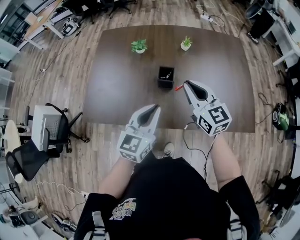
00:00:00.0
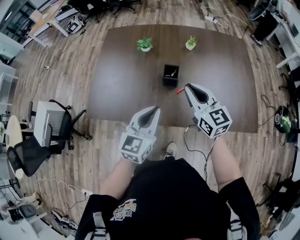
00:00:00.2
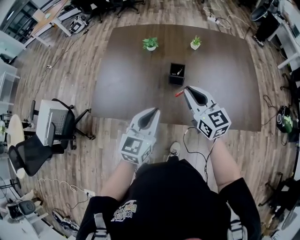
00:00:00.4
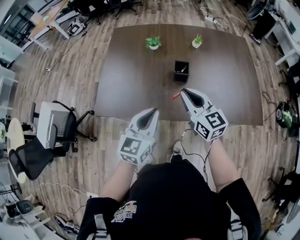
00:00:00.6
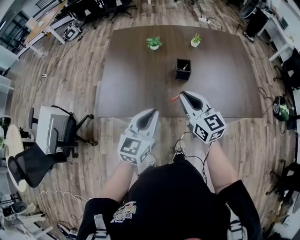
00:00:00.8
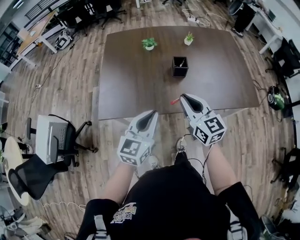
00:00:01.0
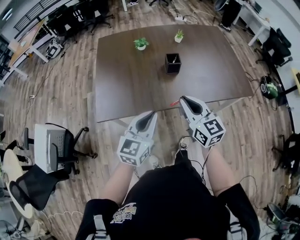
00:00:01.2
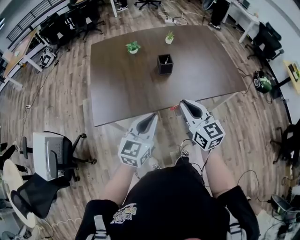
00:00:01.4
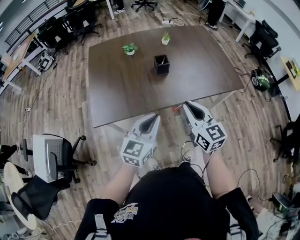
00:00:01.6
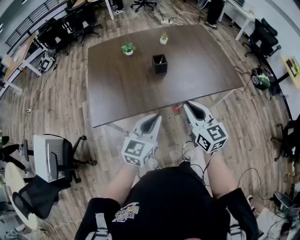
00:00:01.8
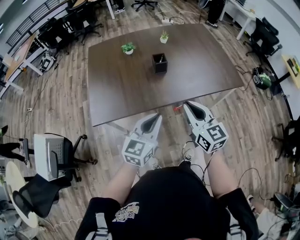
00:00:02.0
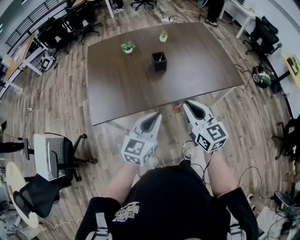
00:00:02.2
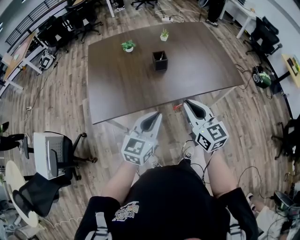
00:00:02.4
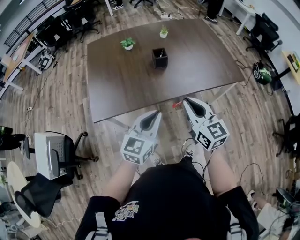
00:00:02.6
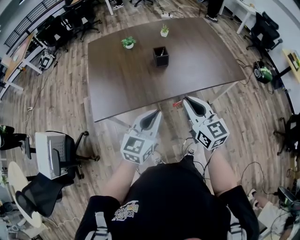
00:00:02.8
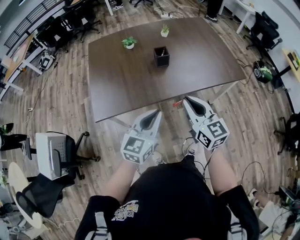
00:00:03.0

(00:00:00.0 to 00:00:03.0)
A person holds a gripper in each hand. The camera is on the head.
00:00:00.0 - 00:00:01.6: The two grippers go some 25 cm backward and to the left. The right gripper turns by approximately 20 degrees.
00:00:01.6 - 00:00:03.0: The grippers stay close to where they were, moving slightly.

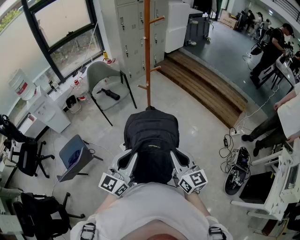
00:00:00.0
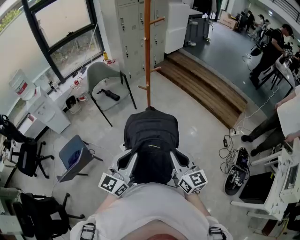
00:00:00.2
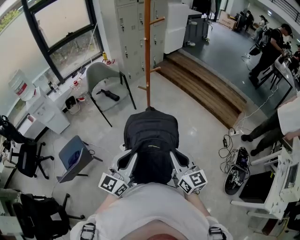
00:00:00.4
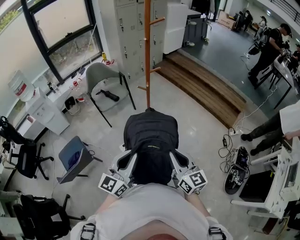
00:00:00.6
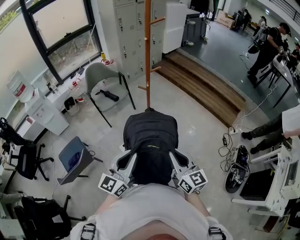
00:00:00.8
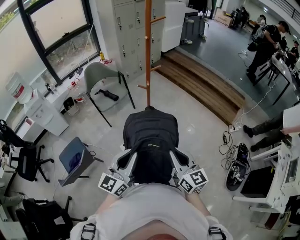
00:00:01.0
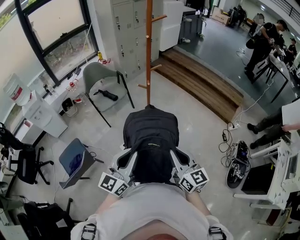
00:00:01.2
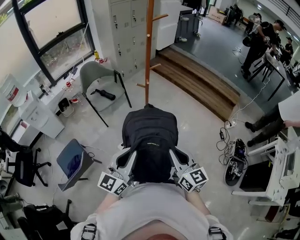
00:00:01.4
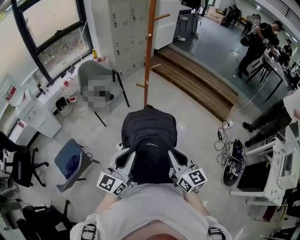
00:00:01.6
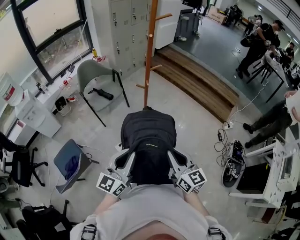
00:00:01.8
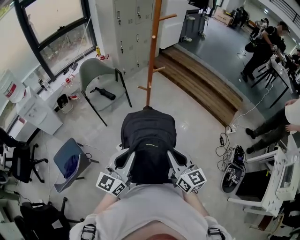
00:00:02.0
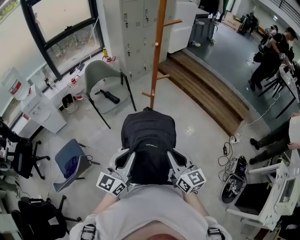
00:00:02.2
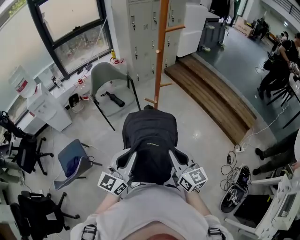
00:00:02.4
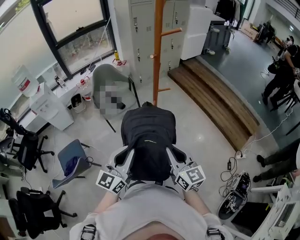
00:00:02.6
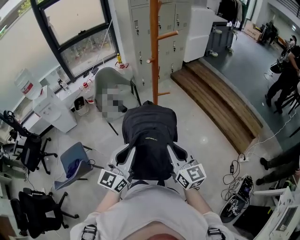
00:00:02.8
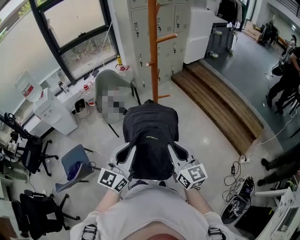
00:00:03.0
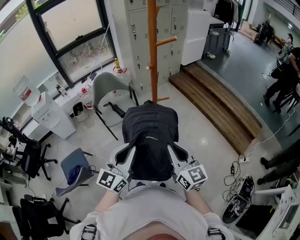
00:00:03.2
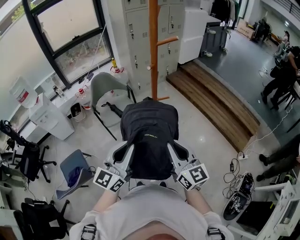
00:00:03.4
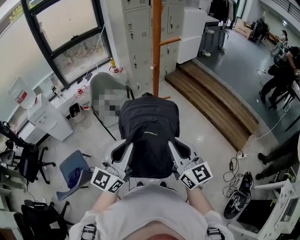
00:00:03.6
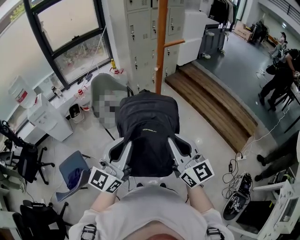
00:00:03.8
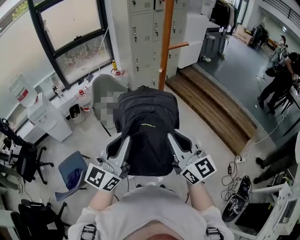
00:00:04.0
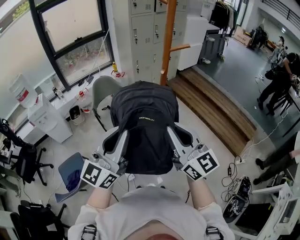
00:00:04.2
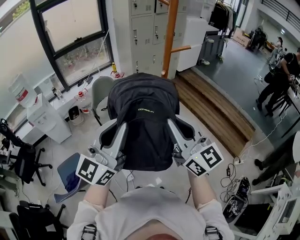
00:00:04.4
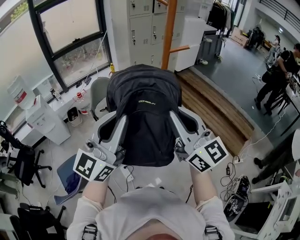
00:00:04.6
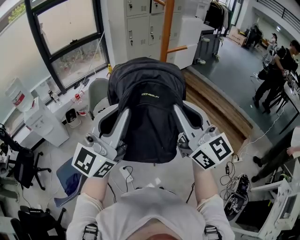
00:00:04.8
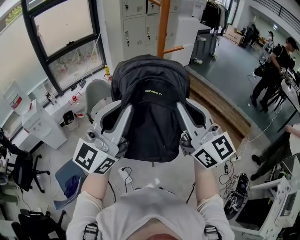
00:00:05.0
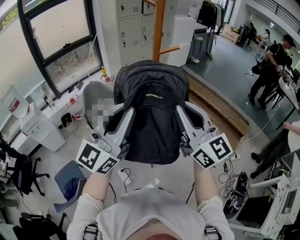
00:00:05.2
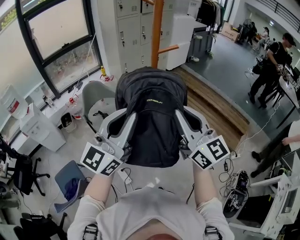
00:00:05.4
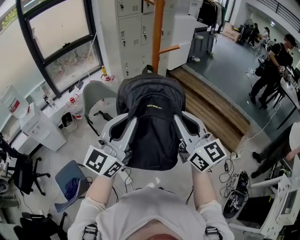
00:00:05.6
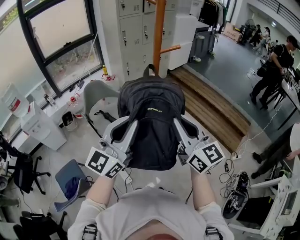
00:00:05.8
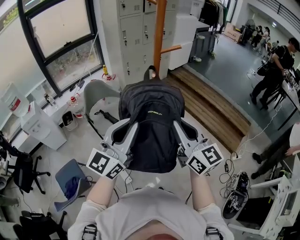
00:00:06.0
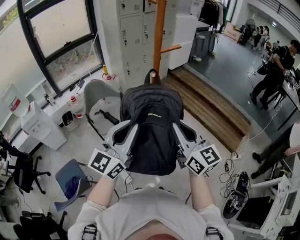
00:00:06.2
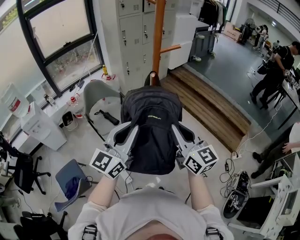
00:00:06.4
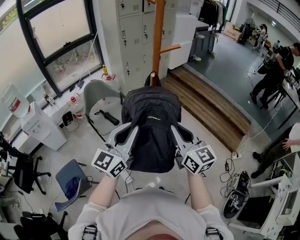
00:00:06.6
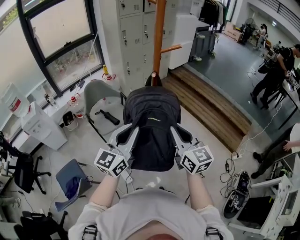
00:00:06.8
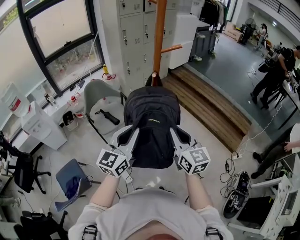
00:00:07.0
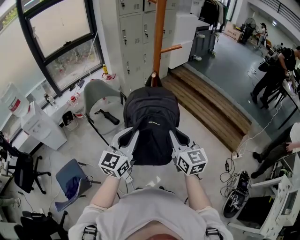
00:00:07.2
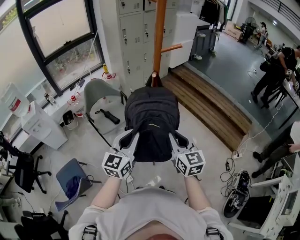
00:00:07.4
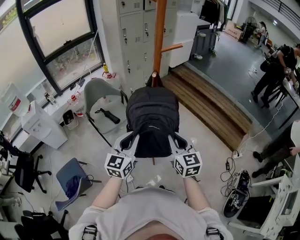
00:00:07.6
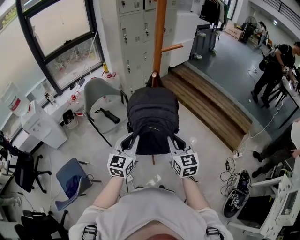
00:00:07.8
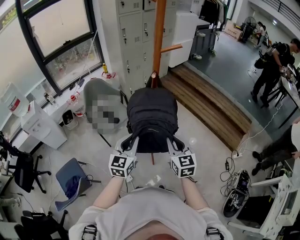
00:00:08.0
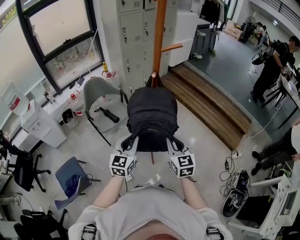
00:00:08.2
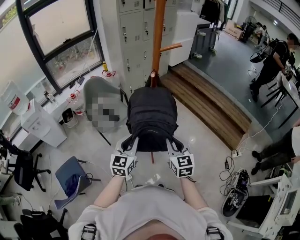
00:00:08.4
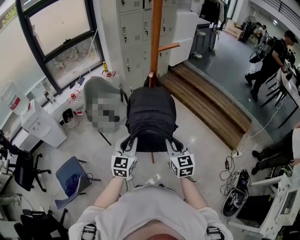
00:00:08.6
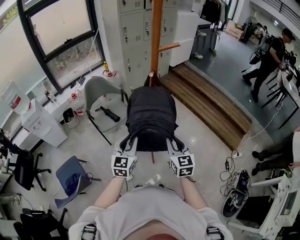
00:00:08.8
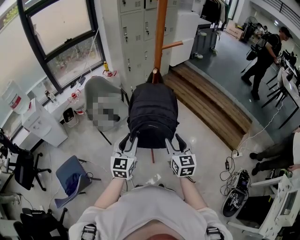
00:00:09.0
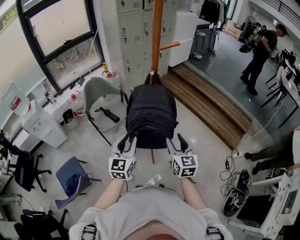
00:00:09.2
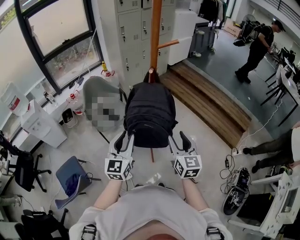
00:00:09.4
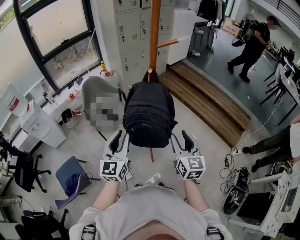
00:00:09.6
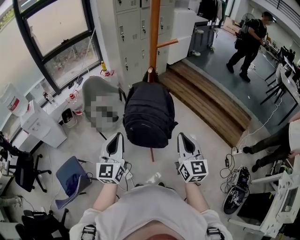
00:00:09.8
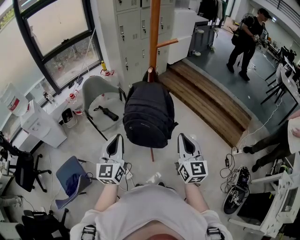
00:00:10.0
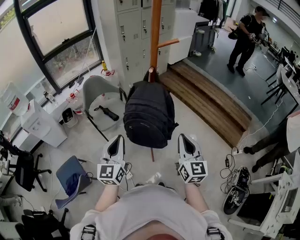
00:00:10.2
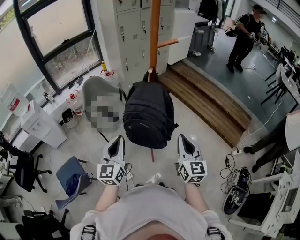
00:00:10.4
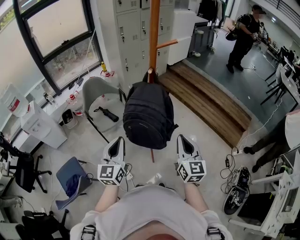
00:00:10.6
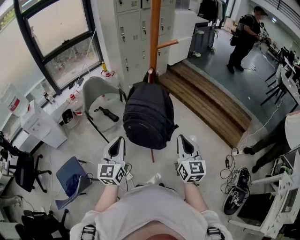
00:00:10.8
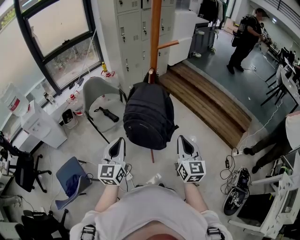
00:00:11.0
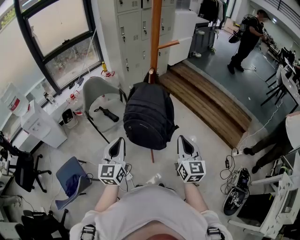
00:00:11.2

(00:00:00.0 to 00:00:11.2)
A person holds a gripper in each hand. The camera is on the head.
00:00:00.0 - 00:00:01.6: The grippers both shift to the left by approximately 5 cm.
00:00:01.6 - 00:00:03.2: Both grippers move forward, roughly 25 cm.
00:00:03.2 - 00:00:04.8: The two grippers go some 20 cm upward. The right gripper rotates some 20 degrees. Meanwhile the left gripper rotates roughly 20 degrees.
00:00:04.8 - 00:00:06.4: The two grippers go some 15 cm downward.
00:00:06.4 - 00:00:08.0: The two grippers go roughly 15 cm downward. The right gripper rotates about 20 degrees. The left gripper turns by some 20 degrees.
00:00:08.0 - 00:00:09.6: The left gripper travels upward by about 5 cm; the right gripper shifts by approximately 5 cm, and opens up.
00:00:09.6 - 00:00:11.2: The left gripper closes. The right gripper closes its fingers.

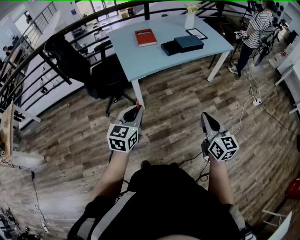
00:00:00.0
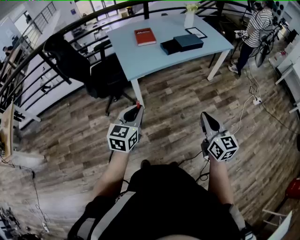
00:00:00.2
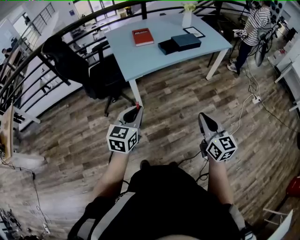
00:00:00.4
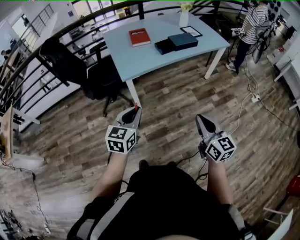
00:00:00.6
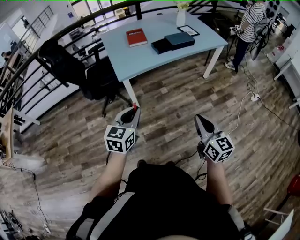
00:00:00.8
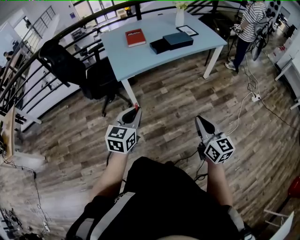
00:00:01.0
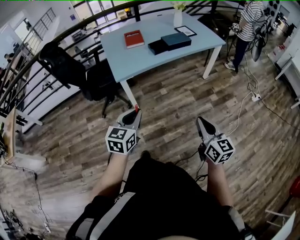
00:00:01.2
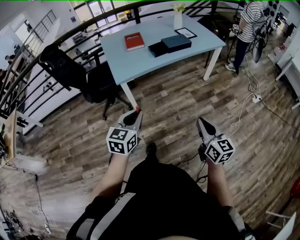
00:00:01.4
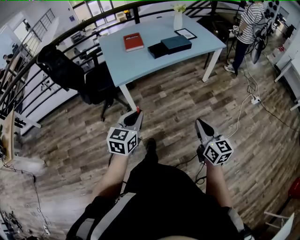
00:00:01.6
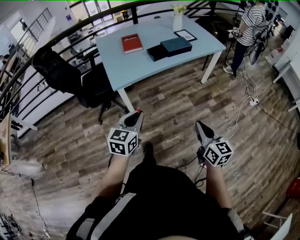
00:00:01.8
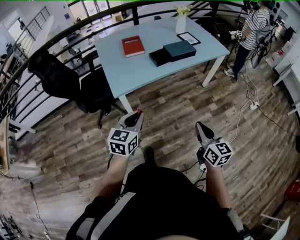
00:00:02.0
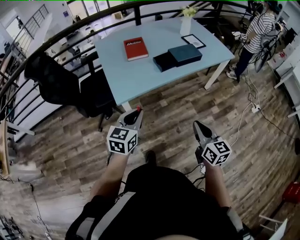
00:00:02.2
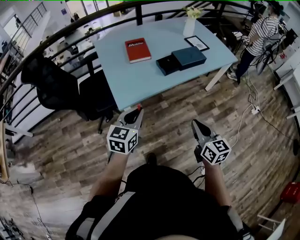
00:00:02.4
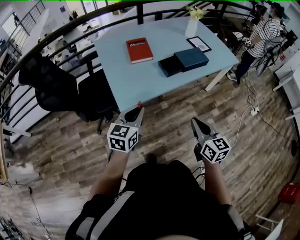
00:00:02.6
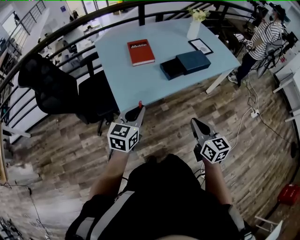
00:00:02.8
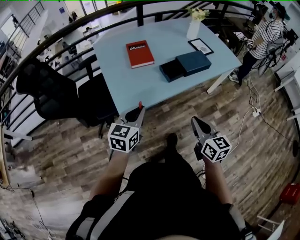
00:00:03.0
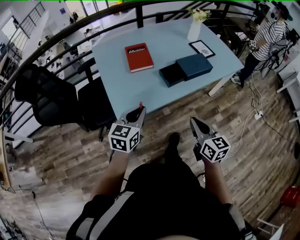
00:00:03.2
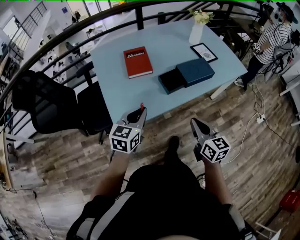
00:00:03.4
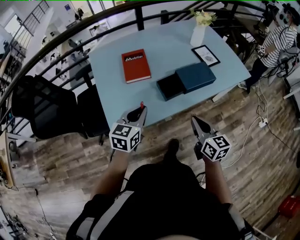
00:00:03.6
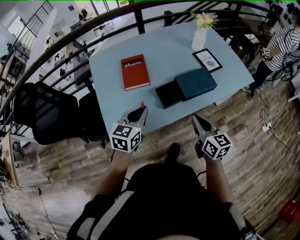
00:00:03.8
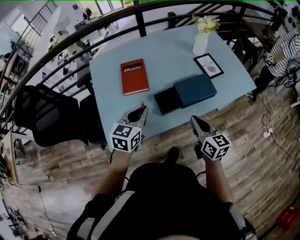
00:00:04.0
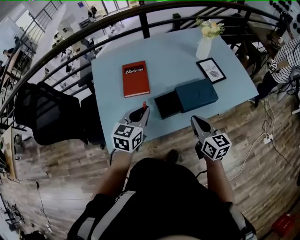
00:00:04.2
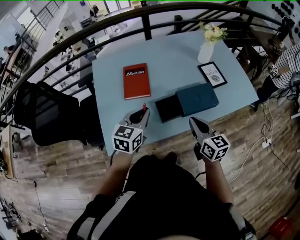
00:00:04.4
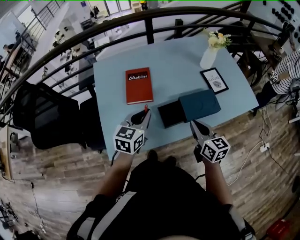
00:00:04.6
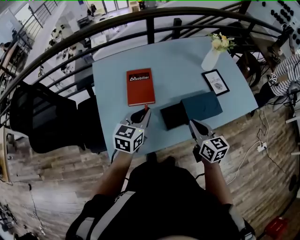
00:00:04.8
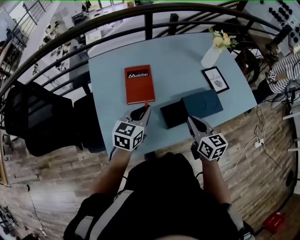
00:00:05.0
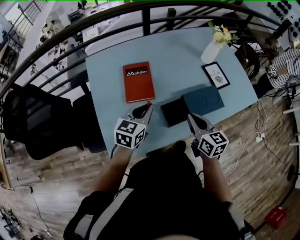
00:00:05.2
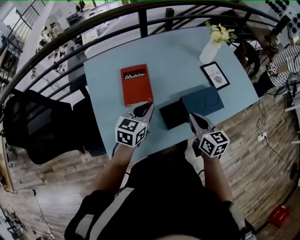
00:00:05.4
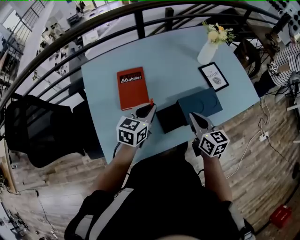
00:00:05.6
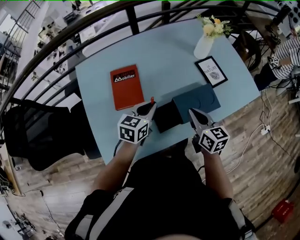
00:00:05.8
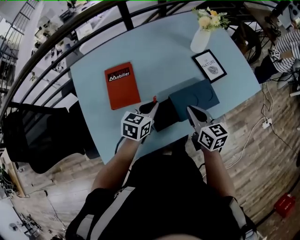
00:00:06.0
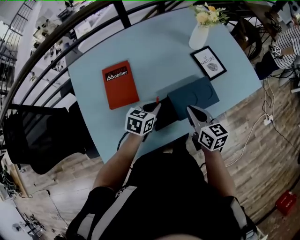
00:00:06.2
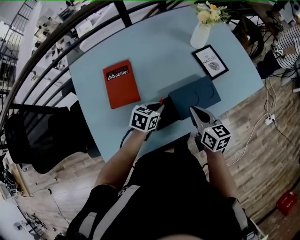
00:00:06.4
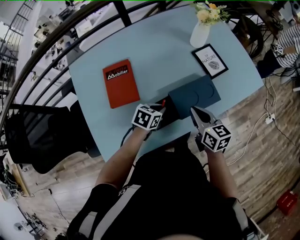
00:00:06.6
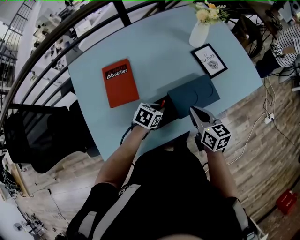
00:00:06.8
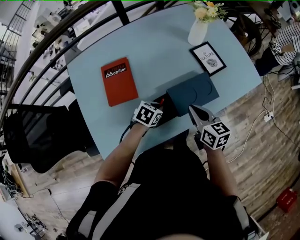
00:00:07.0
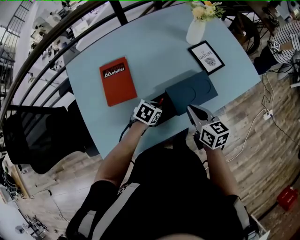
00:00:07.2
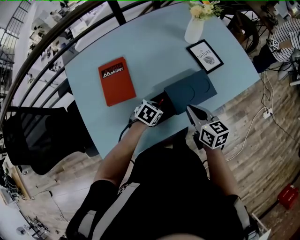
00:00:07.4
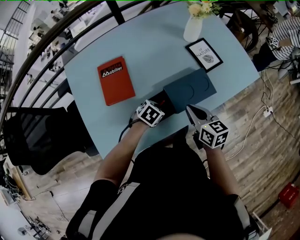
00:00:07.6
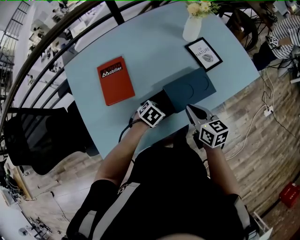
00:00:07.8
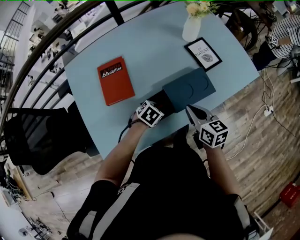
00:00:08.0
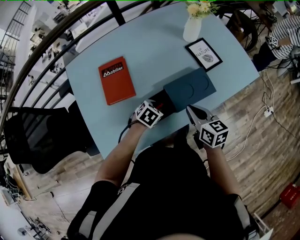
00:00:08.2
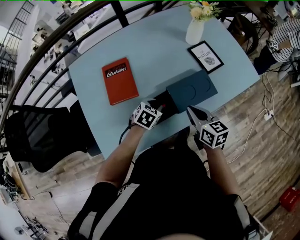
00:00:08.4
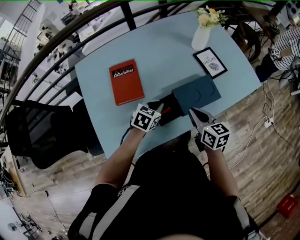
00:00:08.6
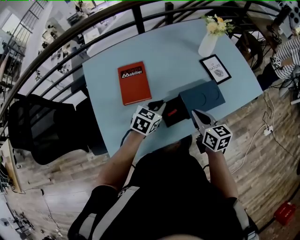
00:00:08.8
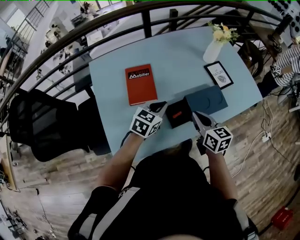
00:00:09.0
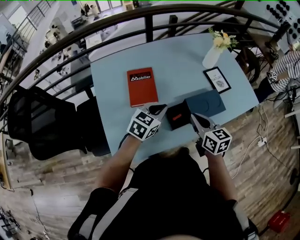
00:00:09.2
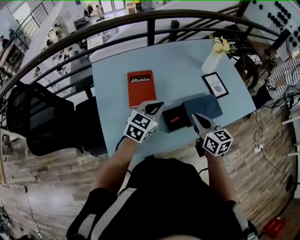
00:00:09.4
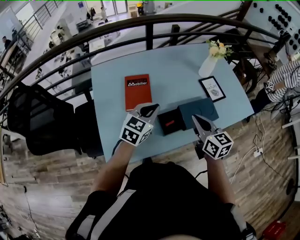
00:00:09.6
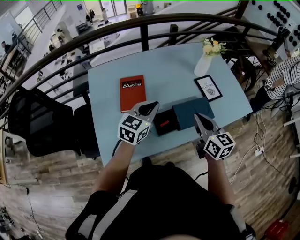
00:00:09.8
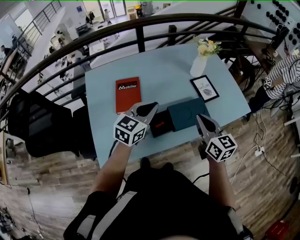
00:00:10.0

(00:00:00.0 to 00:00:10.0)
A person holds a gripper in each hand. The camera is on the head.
00:00:00.0 - 00:00:01.4: The grippers both shift to the right by roughly 10 cm.
00:00:01.4 - 00:00:02.8: Both grippers travel together forward and to the left, roughly 35 cm.
00:00:02.8 - 00:00:04.2: The left gripper is displaced forward and to the right by roughly 30 cm, while the right gripper heads forward, covering roughly 35 cm.
00:00:04.2 - 00:00:05.8: The left gripper shifts approximately 15 cm forward and downward; the right gripper shifts some 15 cm forward.
00:00:05.8 - 00:00:07.2: The left gripper heads downward and to the right, covering some 15 cm, and rotates roughly 40 degrees.
00:00:07.2 - 00:00:08.6: The left gripper travels upward by roughly 5 cm, and opens, then closes once more.
00:00:08.6 - 00:00:10.0: The right gripper travels upward by some 15 cm; the left gripper shifts approximately 20 cm upward, and tips its fingers upward by about 30 degrees.
